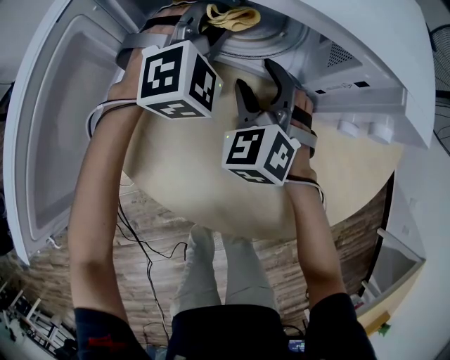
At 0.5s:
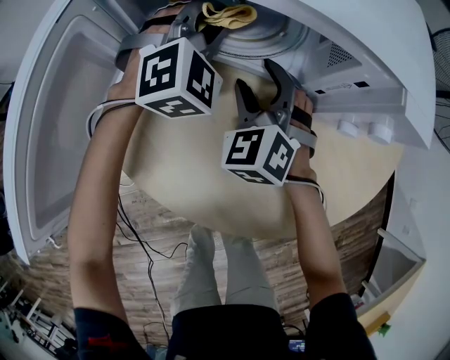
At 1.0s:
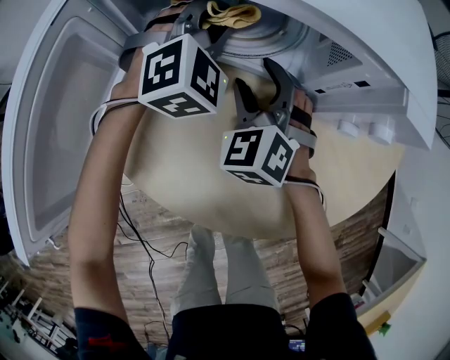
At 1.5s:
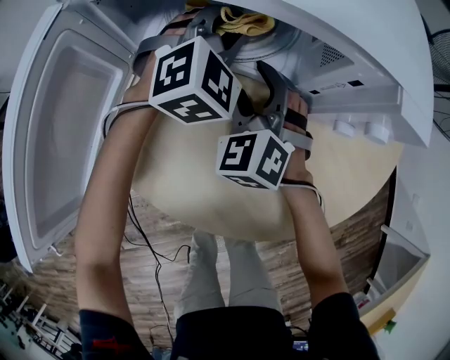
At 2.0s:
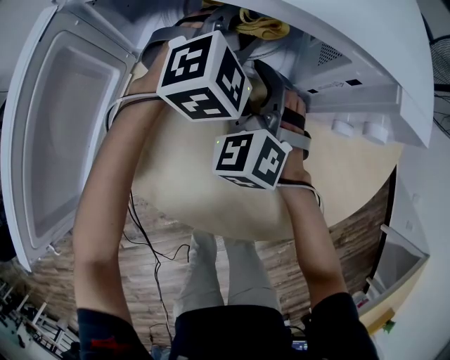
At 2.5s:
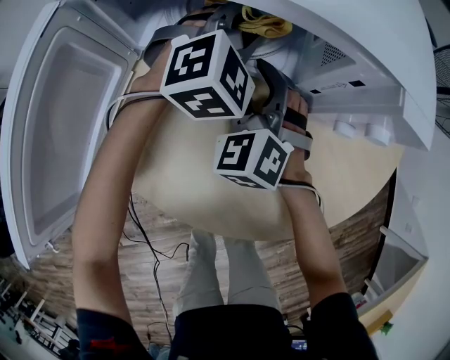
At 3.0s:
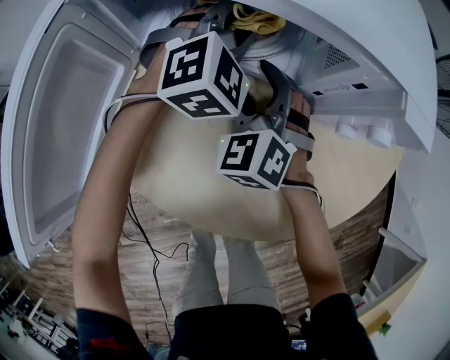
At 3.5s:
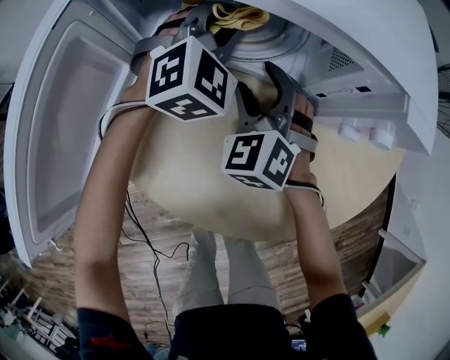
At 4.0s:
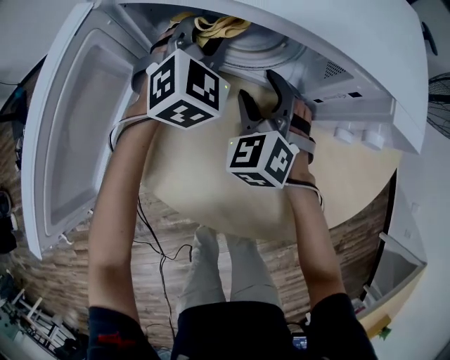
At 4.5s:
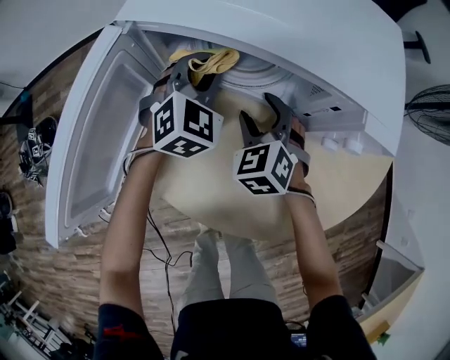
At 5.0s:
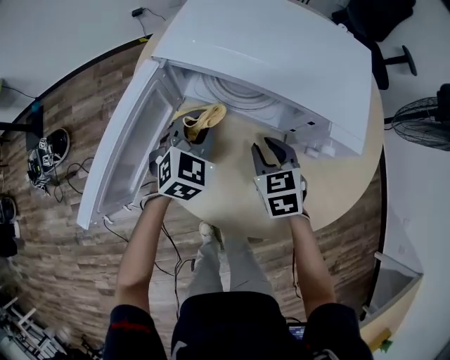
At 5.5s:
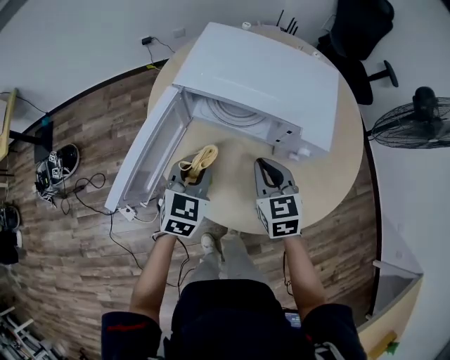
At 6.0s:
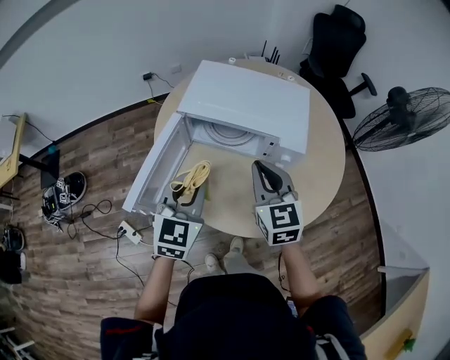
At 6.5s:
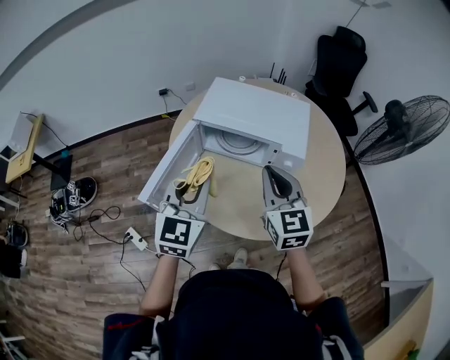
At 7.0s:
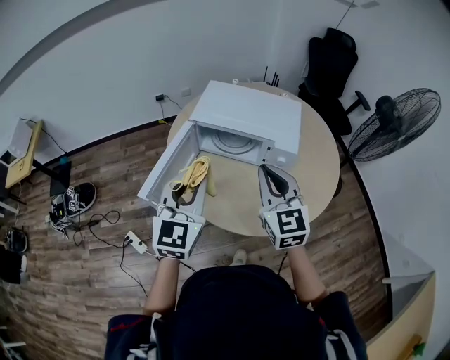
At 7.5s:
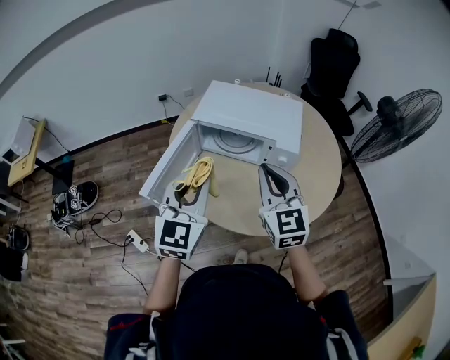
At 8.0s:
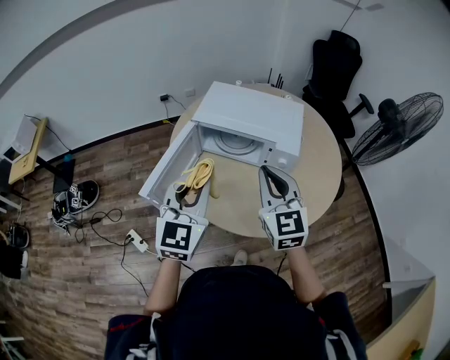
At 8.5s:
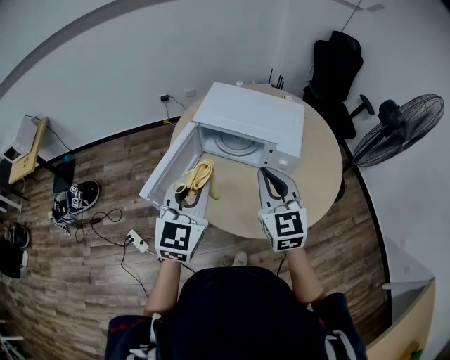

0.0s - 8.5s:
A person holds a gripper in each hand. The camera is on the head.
0.0s - 2.0s: The left gripper is displaced to the right by approximately 5 cm.
2.0s - 4.0s: The left gripper heads to the left, covering about 10 cm.
4.0s - 6.5s: The two grippers go some 50 cm upward and backward. The left gripper swivels about 40 degrees. Meanwhile the right gripper turns by roughly 40 degrees, and closes its fingers.
6.5s - 8.5s: The grippers move only a little.

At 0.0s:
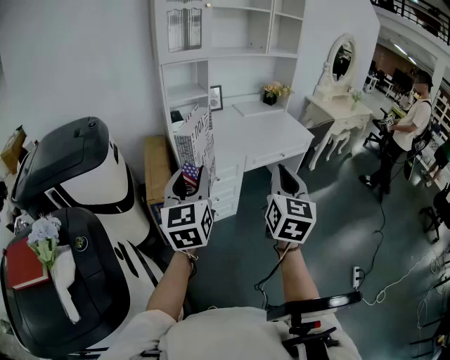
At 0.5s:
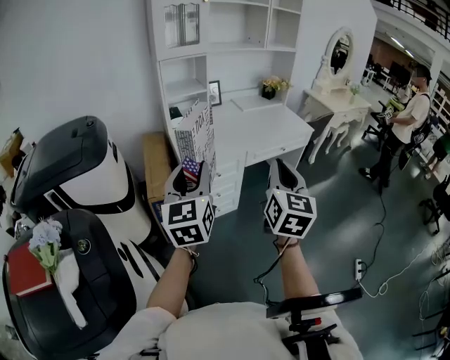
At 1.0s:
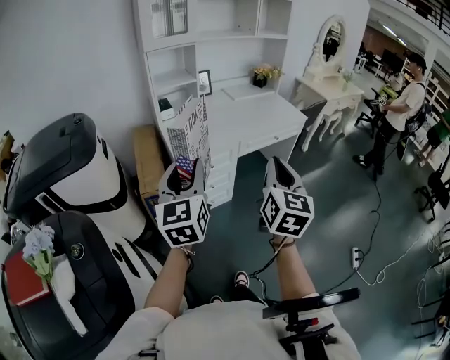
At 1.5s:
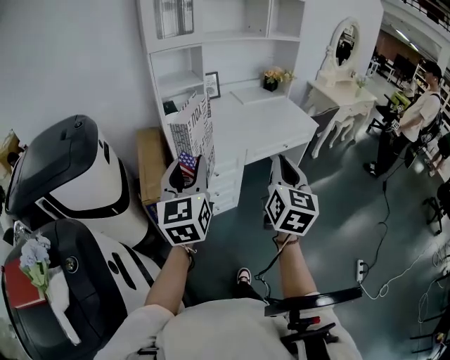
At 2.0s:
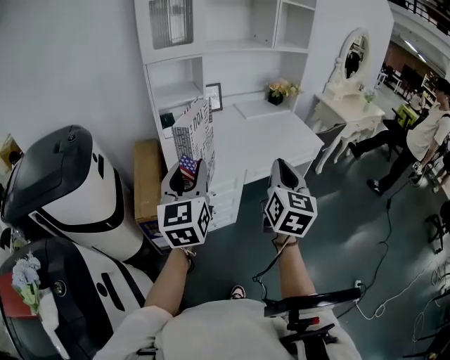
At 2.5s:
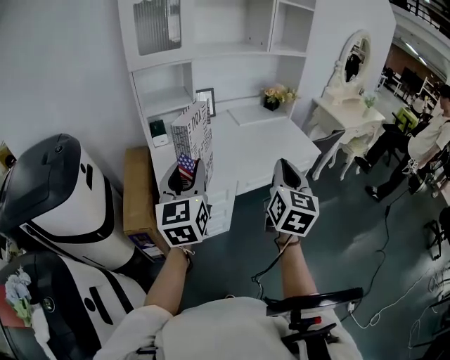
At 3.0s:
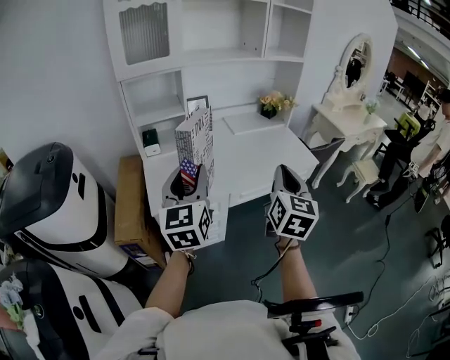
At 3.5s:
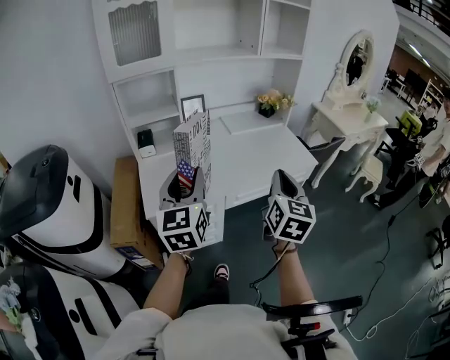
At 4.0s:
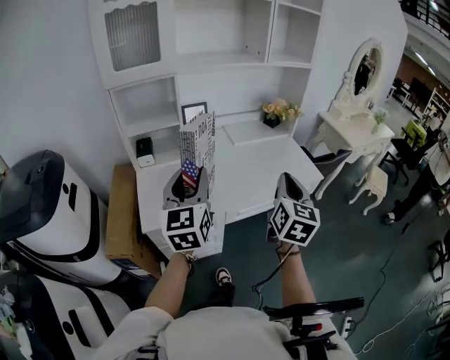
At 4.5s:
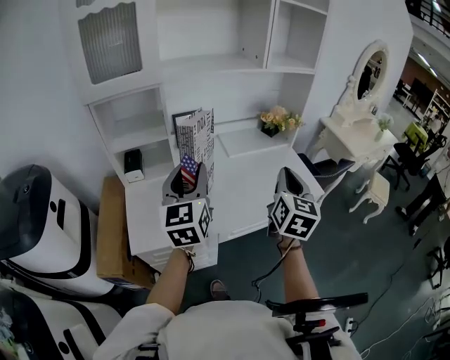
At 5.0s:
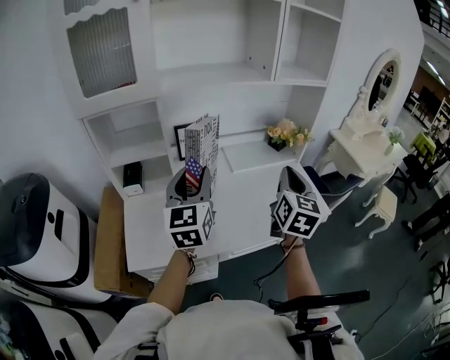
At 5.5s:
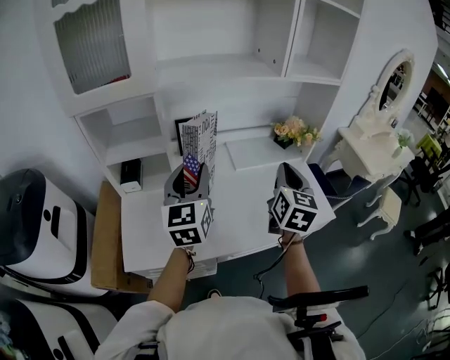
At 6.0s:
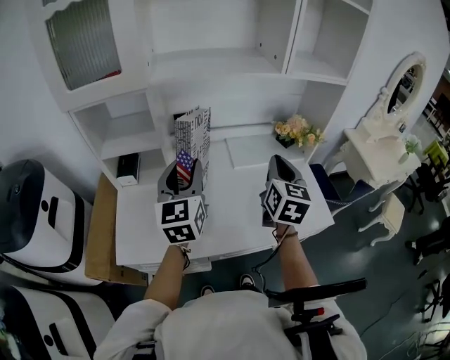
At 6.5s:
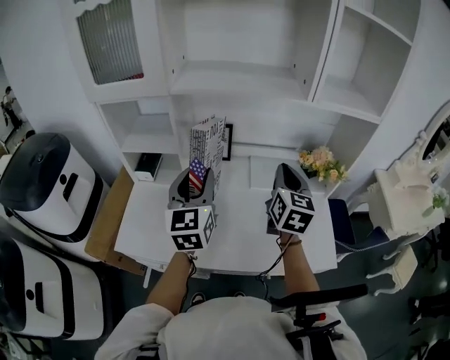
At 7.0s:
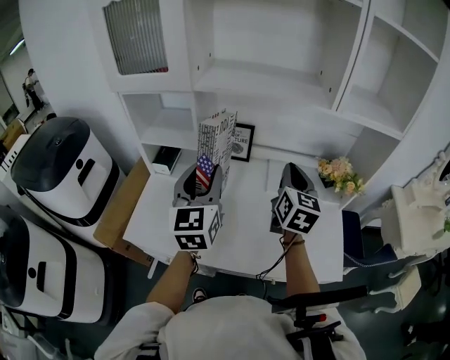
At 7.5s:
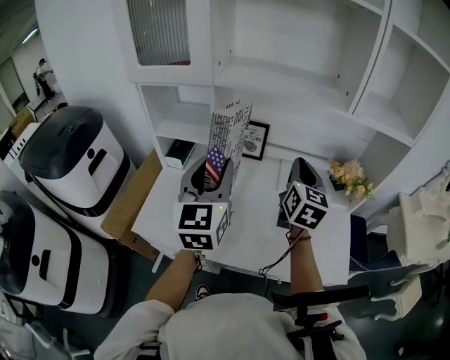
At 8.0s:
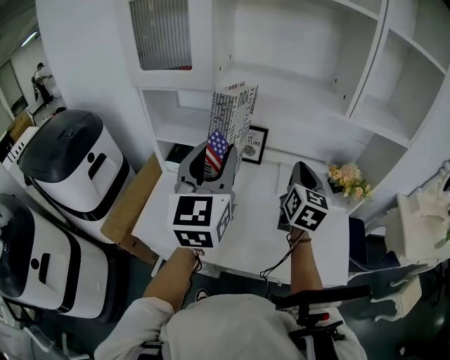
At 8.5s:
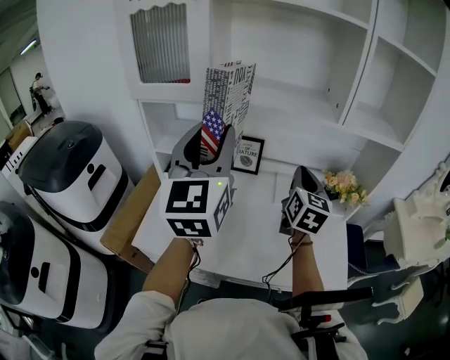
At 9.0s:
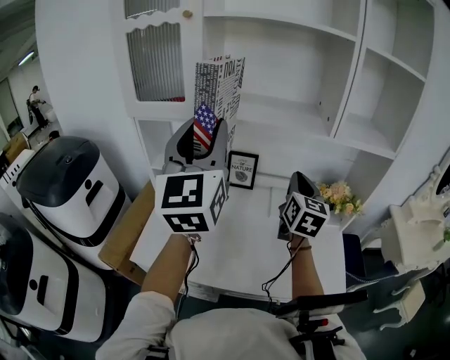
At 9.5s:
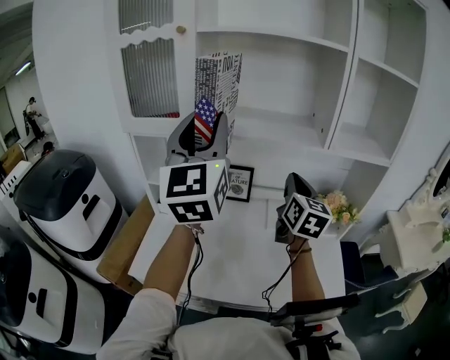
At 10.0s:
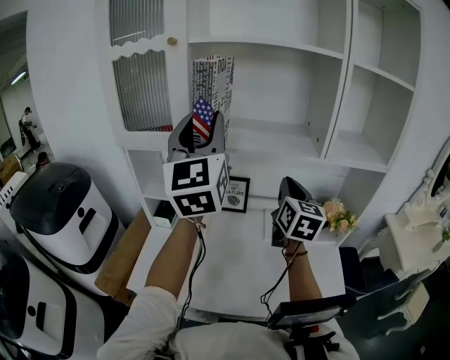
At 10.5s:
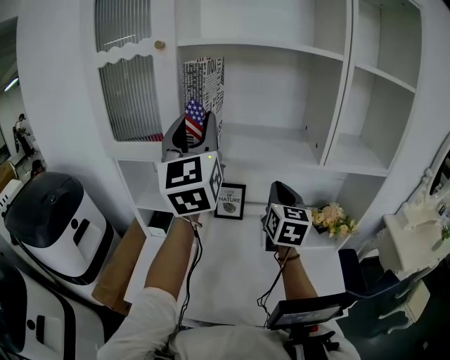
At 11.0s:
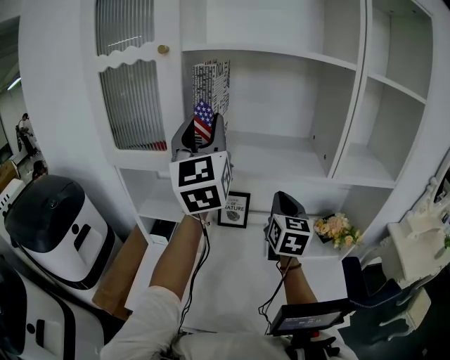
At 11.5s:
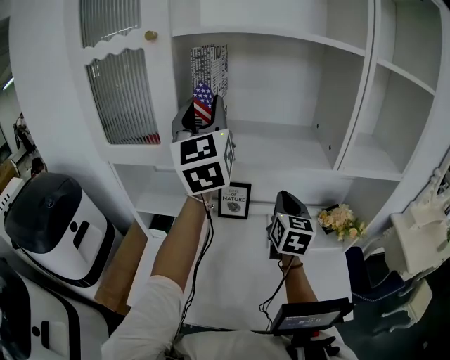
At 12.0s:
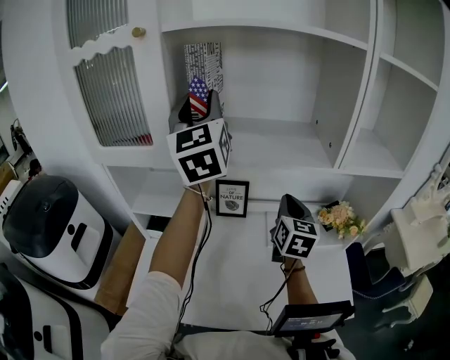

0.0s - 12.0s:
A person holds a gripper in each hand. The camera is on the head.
0.0s - 2.0s: The two grippers go approximately 20 cm forward.
2.0s - 4.0s: Both grippers travel together forward and to the right, roughly 25 cm.
4.0s - 6.0s: The two grippers go roughly 30 cm forward.
6.0s - 8.0s: The left gripper shifts approximately 10 cm upward. The right gripper shifts approximately 10 cm forward.
8.0s - 10.0s: The right gripper shifts roughly 10 cm upward. The left gripper is displaced upward and forward by about 20 cm.
10.0s - 12.0s: The right gripper is displaced downward and forward by some 10 cm; the left gripper is displaced forward by approximately 15 cm.

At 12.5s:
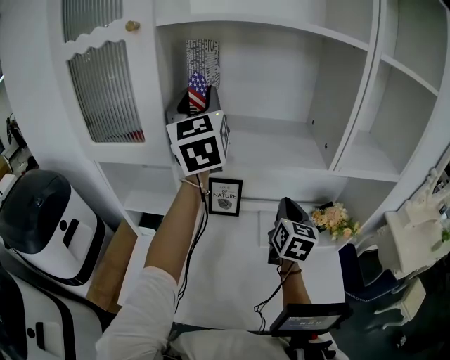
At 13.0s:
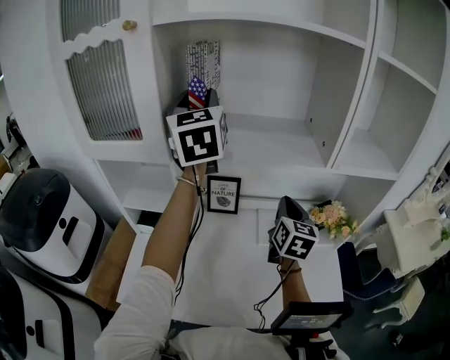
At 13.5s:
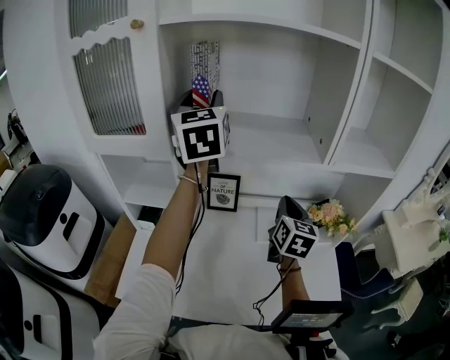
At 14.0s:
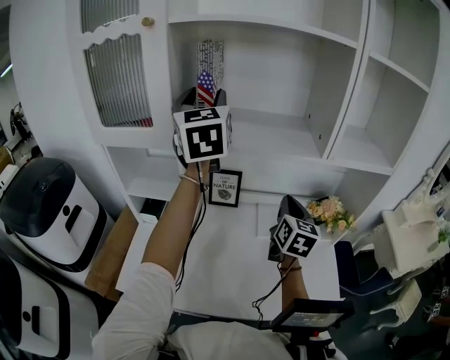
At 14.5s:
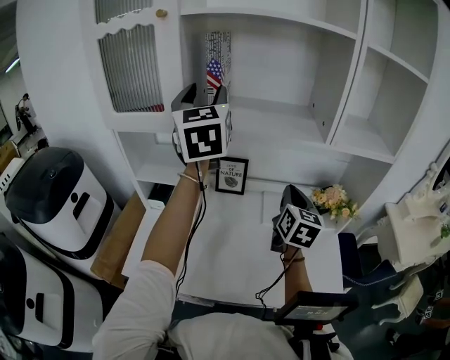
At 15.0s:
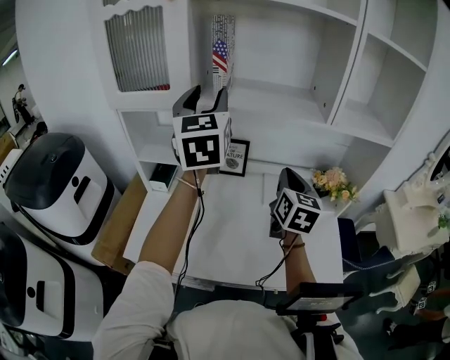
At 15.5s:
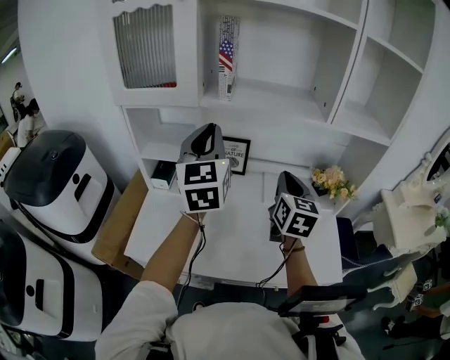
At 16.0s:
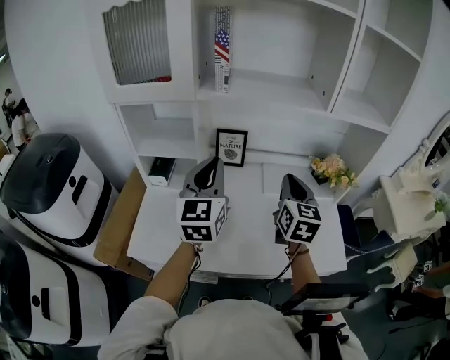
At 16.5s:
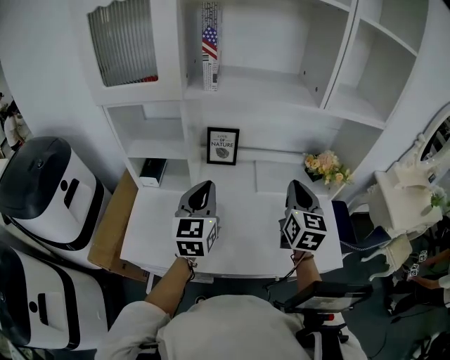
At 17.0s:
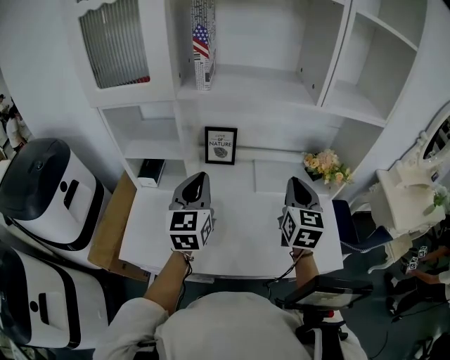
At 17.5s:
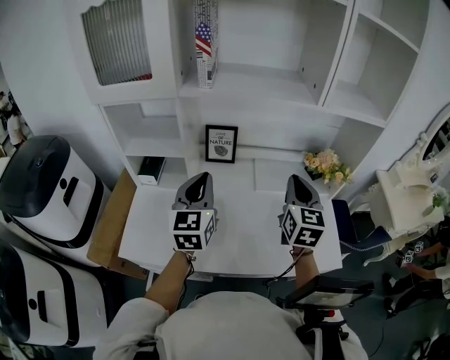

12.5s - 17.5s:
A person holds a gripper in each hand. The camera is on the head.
12.5s - 15.0s: The left gripper heads backward and downward, covering some 15 cm. The right gripper heads backward, covering some 10 cm.
15.0s - 17.5s: The left gripper shifts approximately 25 cm downward, and closes its fingers; the right gripper shifts by about 5 cm.

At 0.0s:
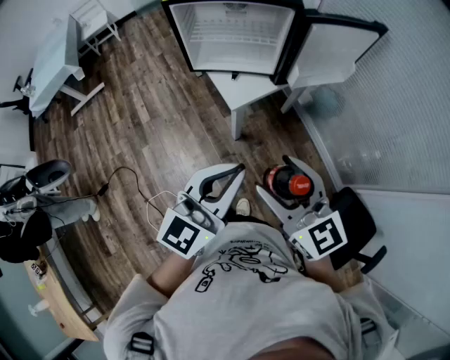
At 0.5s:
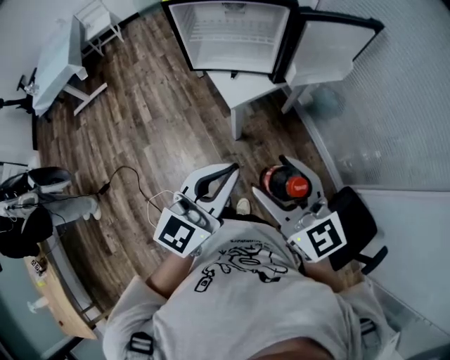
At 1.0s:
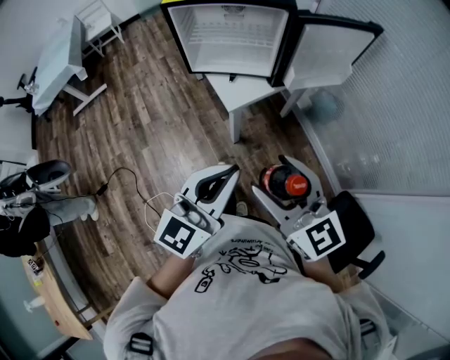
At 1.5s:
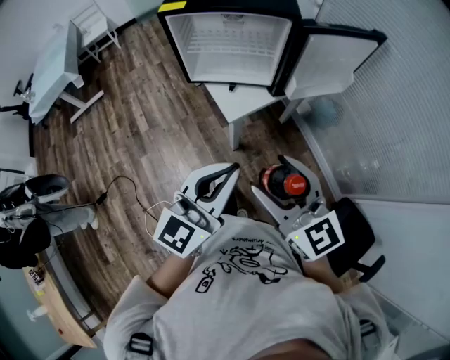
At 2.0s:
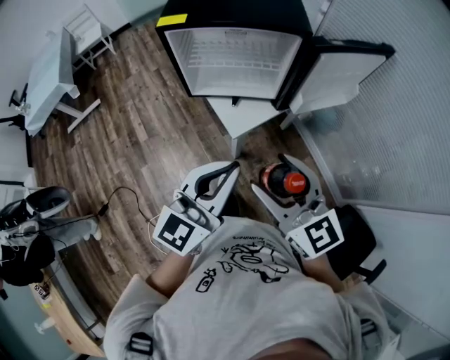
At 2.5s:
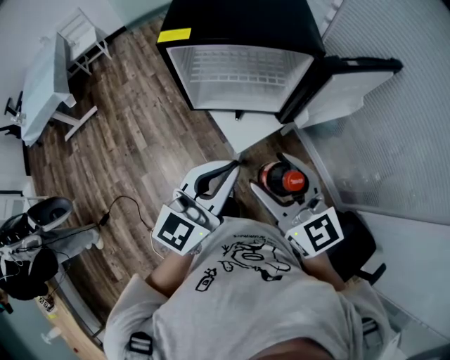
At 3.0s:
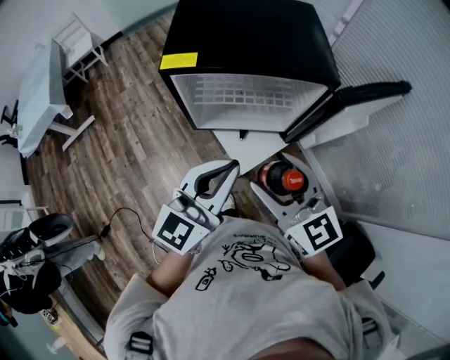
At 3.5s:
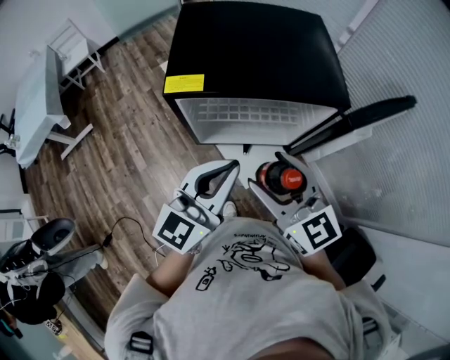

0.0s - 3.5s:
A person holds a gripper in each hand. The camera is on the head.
0.0s - 2.0s: Both grippers travel together forward, approximately 10 cm.
2.0s - 3.5s: The grippers both shift forward by some 20 cm.
